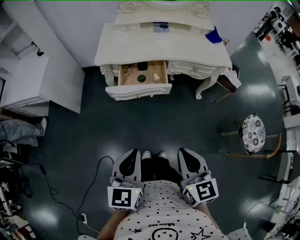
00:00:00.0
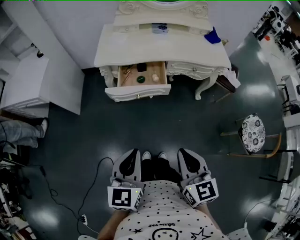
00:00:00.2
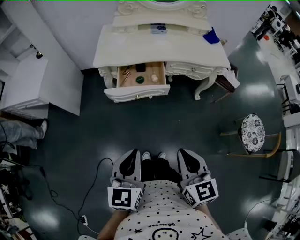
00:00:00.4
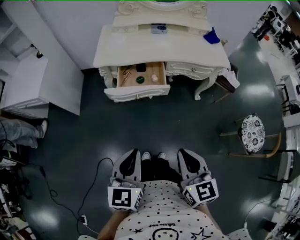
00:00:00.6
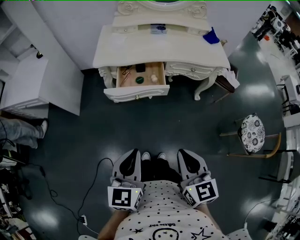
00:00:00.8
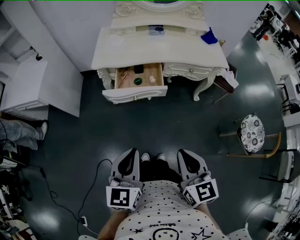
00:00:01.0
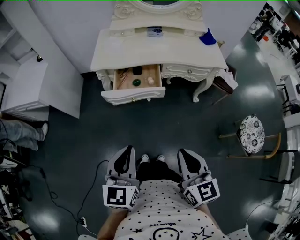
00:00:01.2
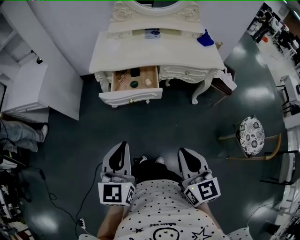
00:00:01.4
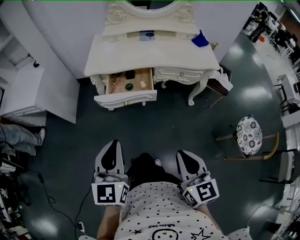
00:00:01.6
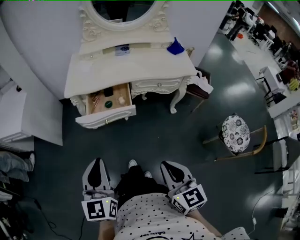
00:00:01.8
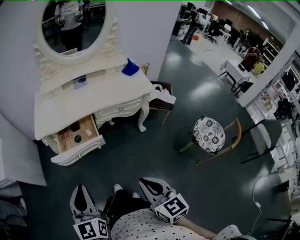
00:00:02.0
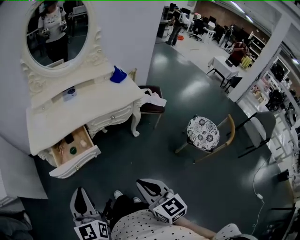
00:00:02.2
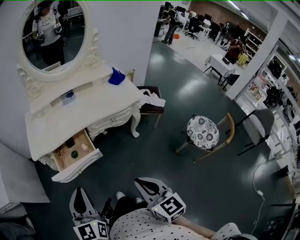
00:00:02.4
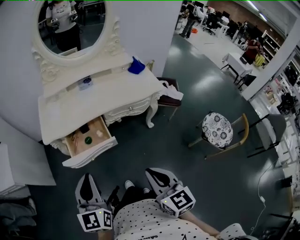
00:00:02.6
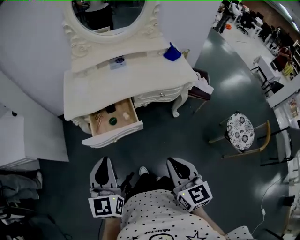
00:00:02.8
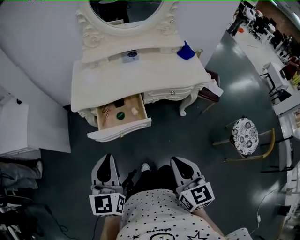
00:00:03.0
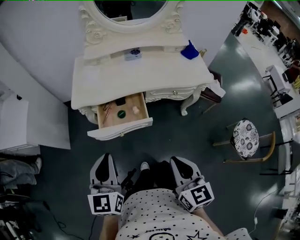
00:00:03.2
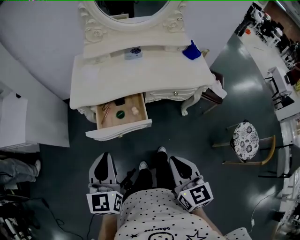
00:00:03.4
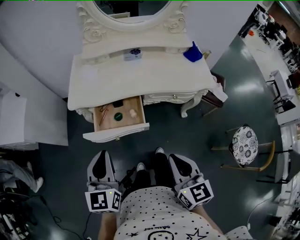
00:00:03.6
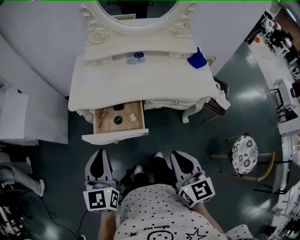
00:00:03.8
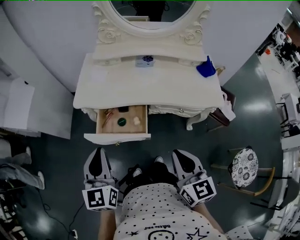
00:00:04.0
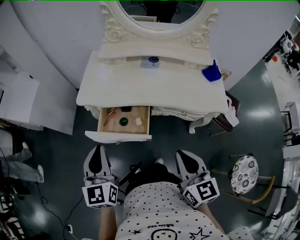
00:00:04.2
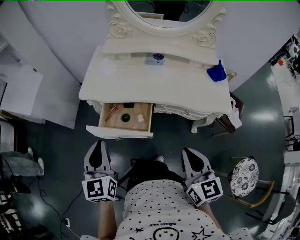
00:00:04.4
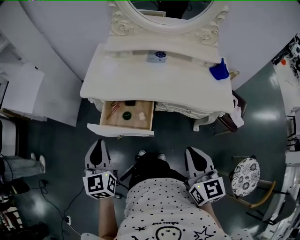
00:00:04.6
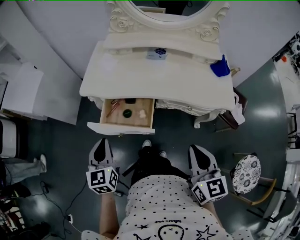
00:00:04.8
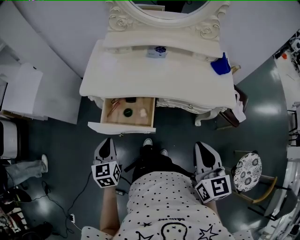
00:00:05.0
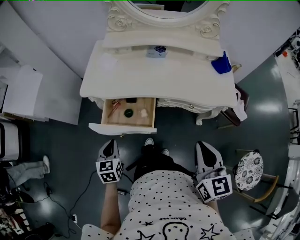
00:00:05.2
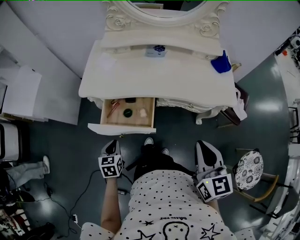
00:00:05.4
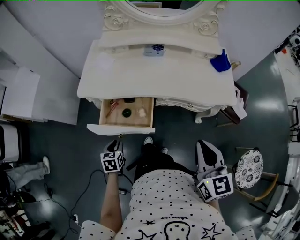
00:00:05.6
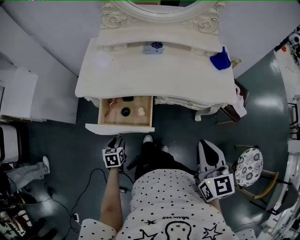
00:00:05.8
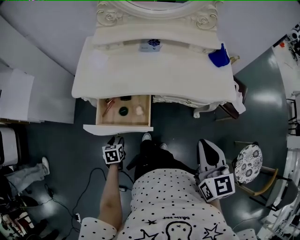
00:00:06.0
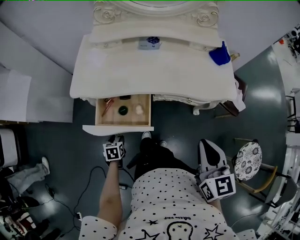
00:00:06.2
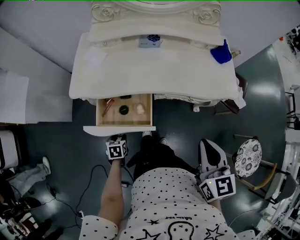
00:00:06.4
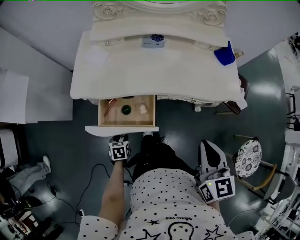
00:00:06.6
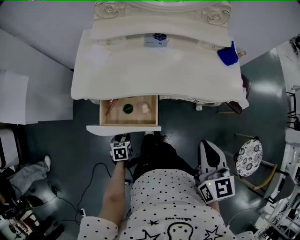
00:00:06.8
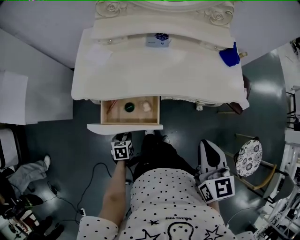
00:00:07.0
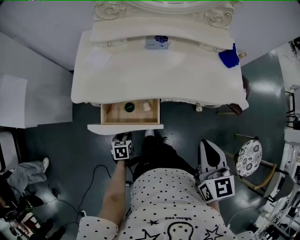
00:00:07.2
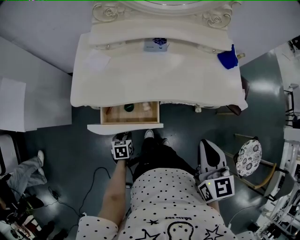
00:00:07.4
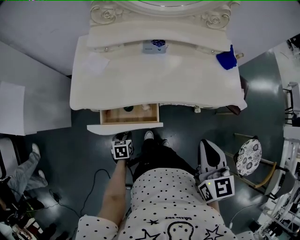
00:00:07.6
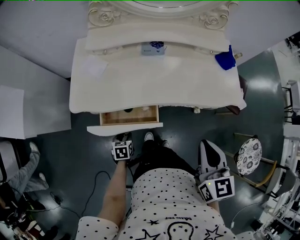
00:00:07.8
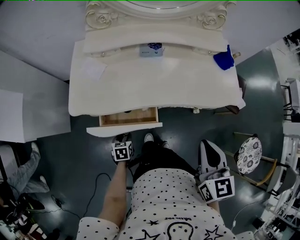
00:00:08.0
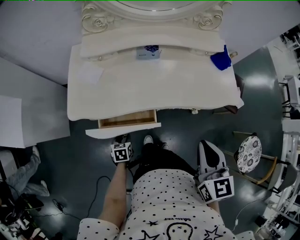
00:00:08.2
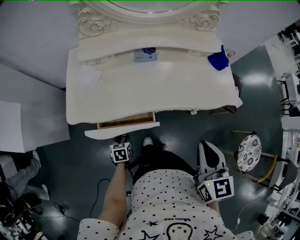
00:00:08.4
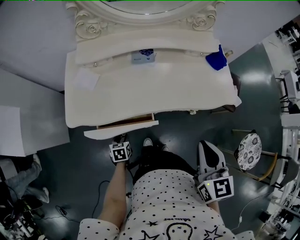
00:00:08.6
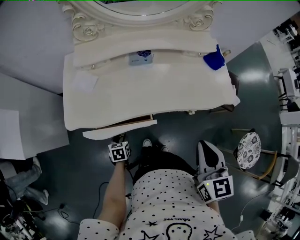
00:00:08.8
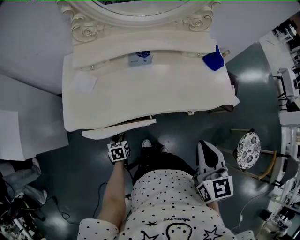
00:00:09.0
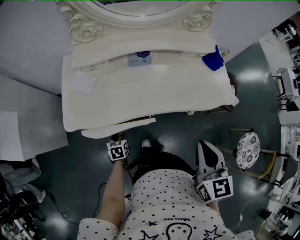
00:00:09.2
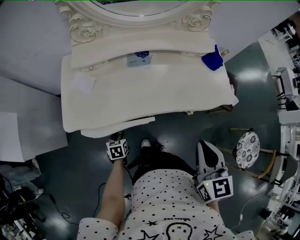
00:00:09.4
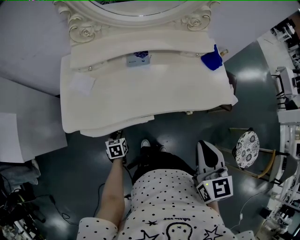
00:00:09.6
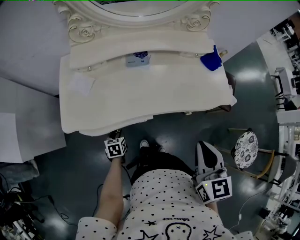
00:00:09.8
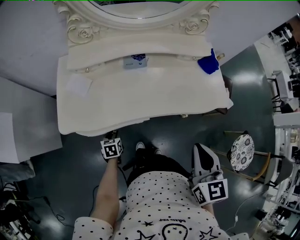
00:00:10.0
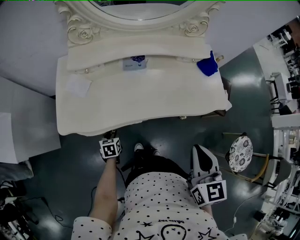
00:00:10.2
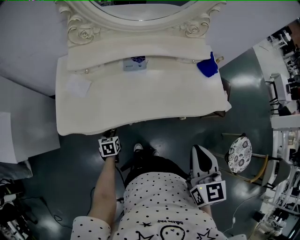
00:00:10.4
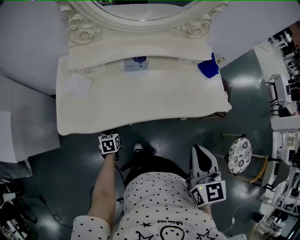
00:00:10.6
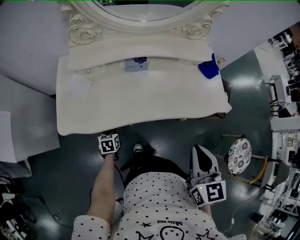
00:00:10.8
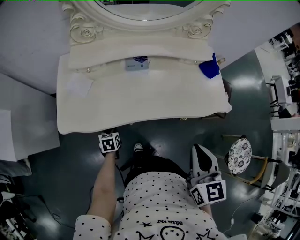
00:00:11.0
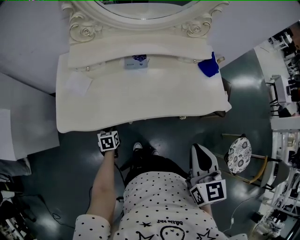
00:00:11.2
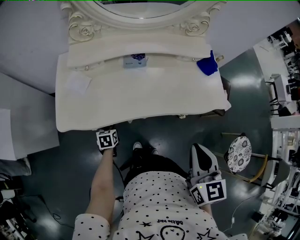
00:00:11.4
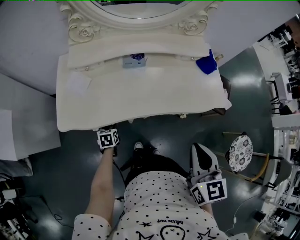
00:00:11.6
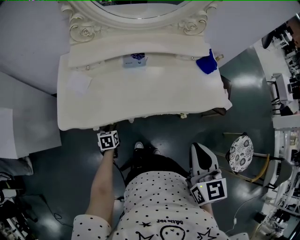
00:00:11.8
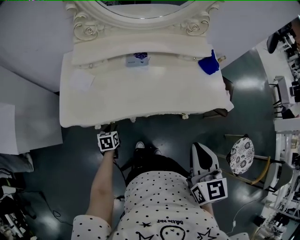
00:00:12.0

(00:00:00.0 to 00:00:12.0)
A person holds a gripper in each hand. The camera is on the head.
00:00:00.0 - 00:00:01.6: The right gripper moves to the right, about 5 cm. The left gripper ends up roughly 5 cm from where it was.
00:00:01.6 - 00:00:03.0: Both grippers travel together forward, some 15 cm.
00:00:03.0 - 00:00:04.4: The right gripper shifts approximately 20 cm forward and to the right; the left gripper heads forward, covering some 10 cm, and turns by roughly 20 degrees.
00:00:04.4 - 00:00:06.0: The right gripper goes some 5 cm to the right, while the left gripper moves downward, roughly 35 cm, tips its fingers downward by some 50 degrees, and opens its fingers.
00:00:06.0 - 00:00:07.6: The right gripper moves forward and to the left, about 10 cm. Meanwhile the left gripper shifts approximately 10 cm forward.
00:00:07.6 - 00:00:09.0: The left gripper moves forward, about 5 cm.
00:00:09.0 - 00:00:10.4: The grippers stay close to where they were, moving slightly.
00:00:10.4 - 00:00:12.0: The grippers stay close to where they were, moving slightly.

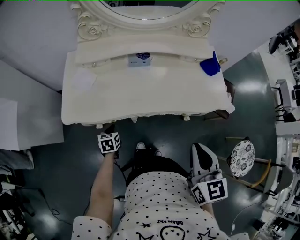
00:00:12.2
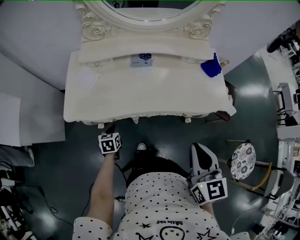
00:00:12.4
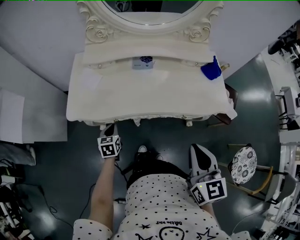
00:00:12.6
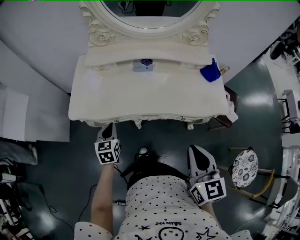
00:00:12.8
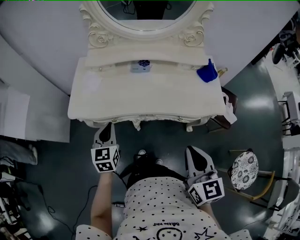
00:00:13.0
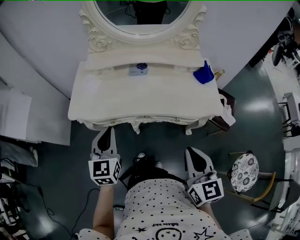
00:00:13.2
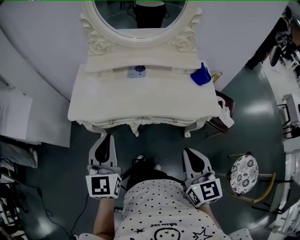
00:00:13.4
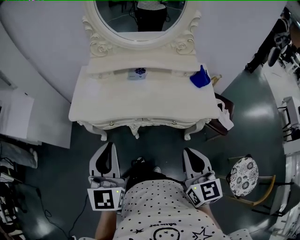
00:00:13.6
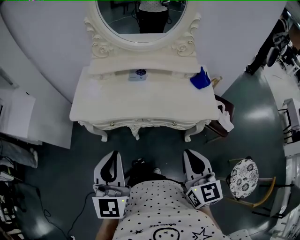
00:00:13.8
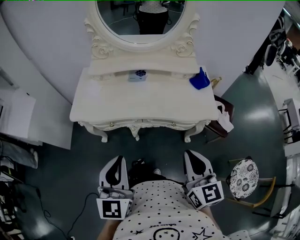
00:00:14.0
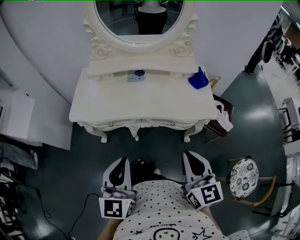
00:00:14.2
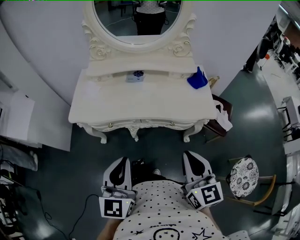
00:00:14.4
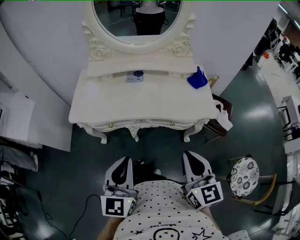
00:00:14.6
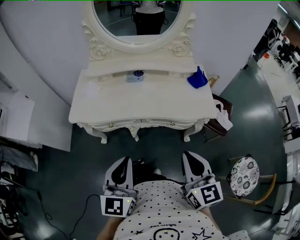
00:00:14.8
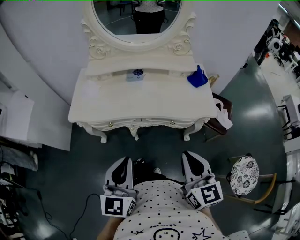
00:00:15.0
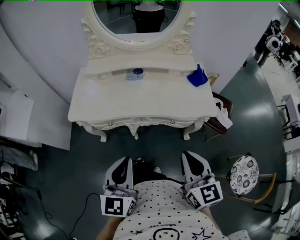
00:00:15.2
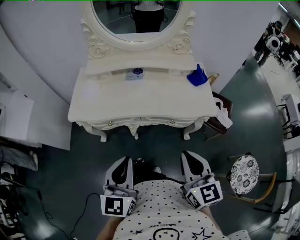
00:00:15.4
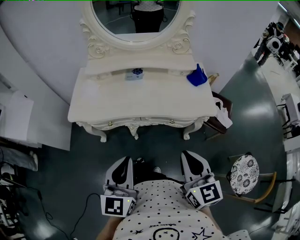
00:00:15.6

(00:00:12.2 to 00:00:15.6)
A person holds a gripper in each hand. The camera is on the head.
00:00:12.2 - 00:00:13.8: The right gripper travels backward and to the right by roughly 10 cm; the left gripper heads upward and backward, covering some 50 cm, and points its fingers about 50 degrees further upward.
00:00:13.8 - 00:00:15.6: The left gripper changes place by about 5 cm.

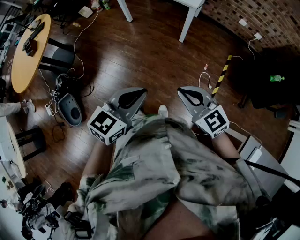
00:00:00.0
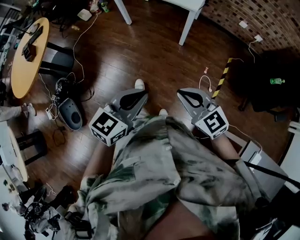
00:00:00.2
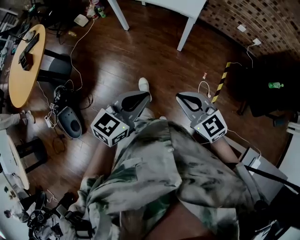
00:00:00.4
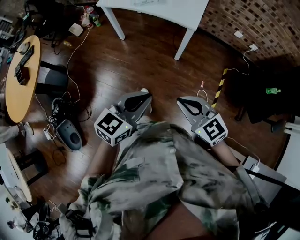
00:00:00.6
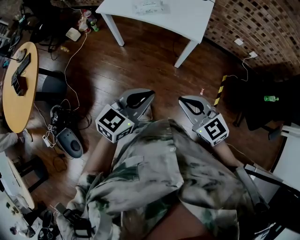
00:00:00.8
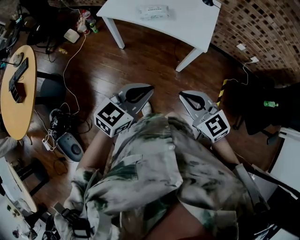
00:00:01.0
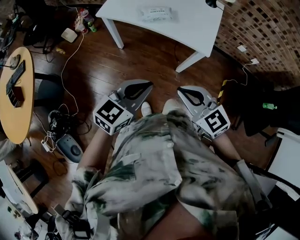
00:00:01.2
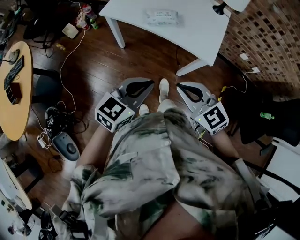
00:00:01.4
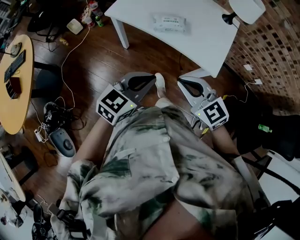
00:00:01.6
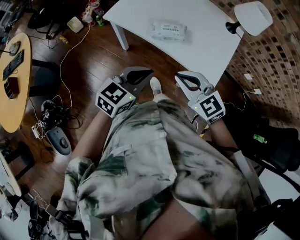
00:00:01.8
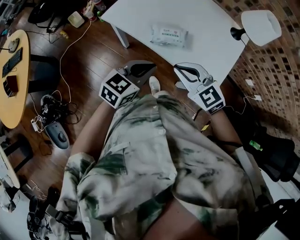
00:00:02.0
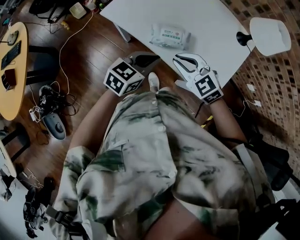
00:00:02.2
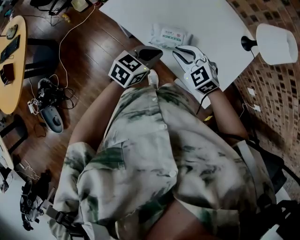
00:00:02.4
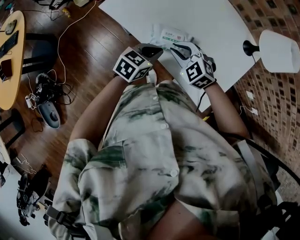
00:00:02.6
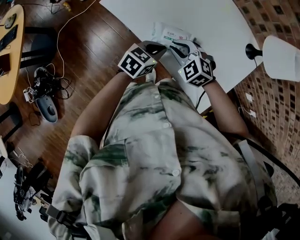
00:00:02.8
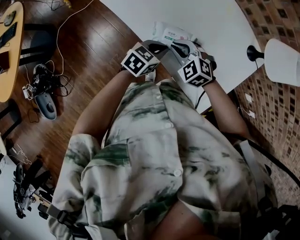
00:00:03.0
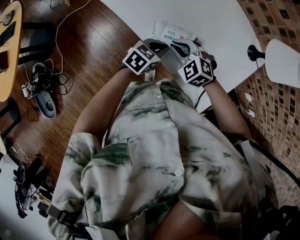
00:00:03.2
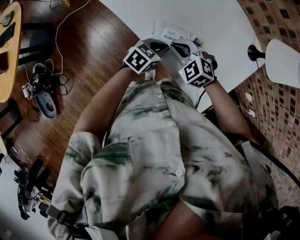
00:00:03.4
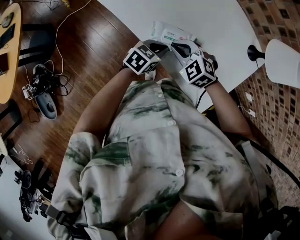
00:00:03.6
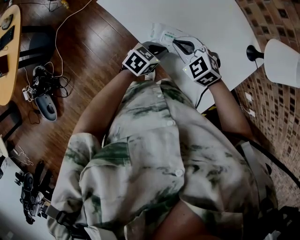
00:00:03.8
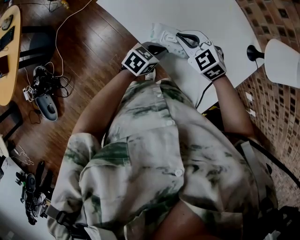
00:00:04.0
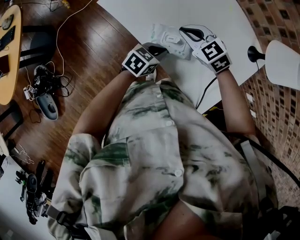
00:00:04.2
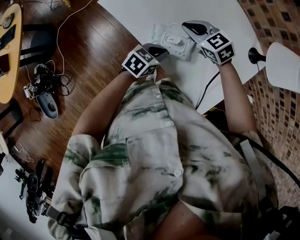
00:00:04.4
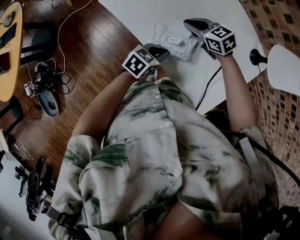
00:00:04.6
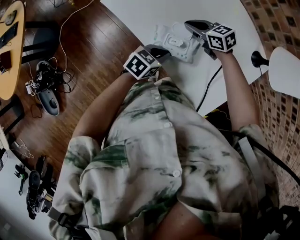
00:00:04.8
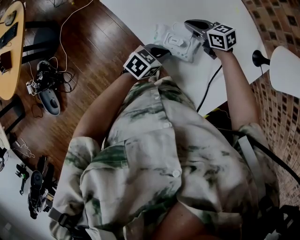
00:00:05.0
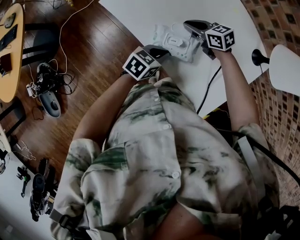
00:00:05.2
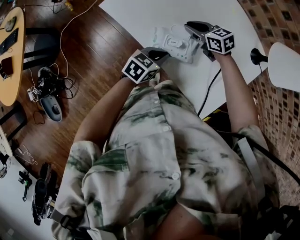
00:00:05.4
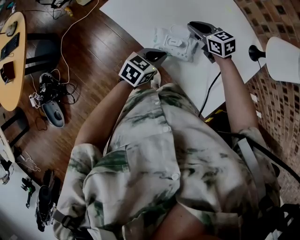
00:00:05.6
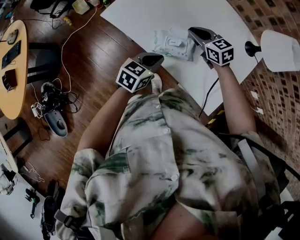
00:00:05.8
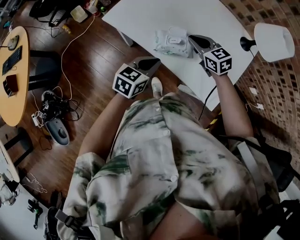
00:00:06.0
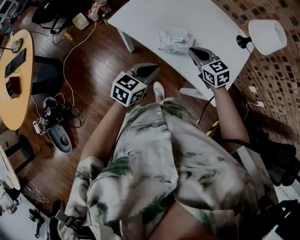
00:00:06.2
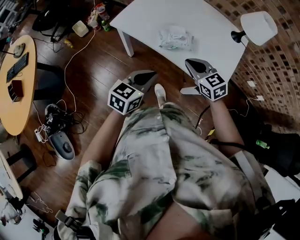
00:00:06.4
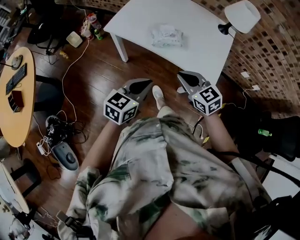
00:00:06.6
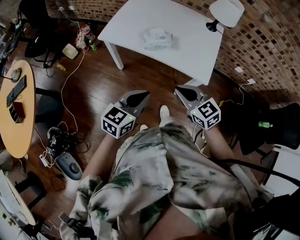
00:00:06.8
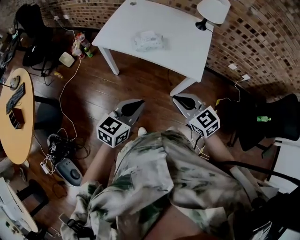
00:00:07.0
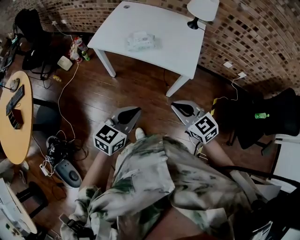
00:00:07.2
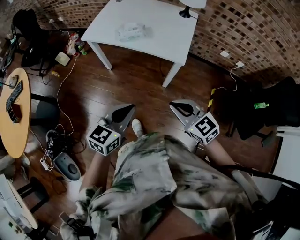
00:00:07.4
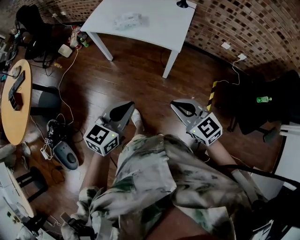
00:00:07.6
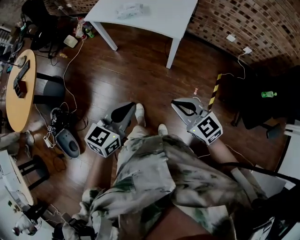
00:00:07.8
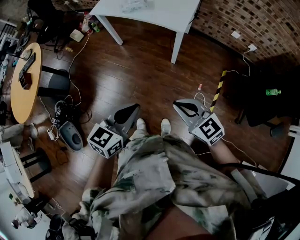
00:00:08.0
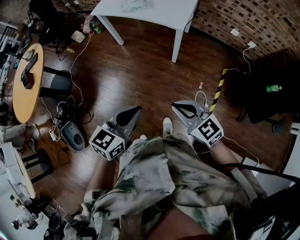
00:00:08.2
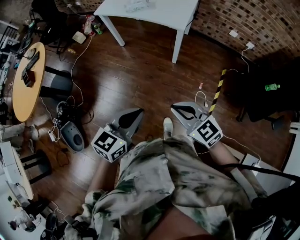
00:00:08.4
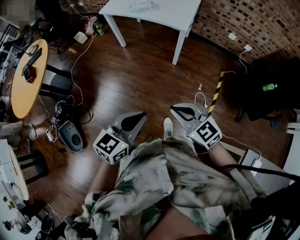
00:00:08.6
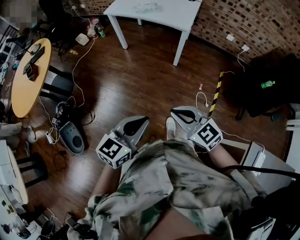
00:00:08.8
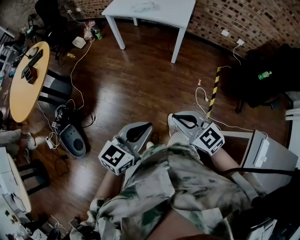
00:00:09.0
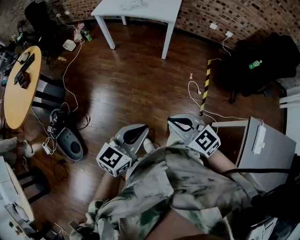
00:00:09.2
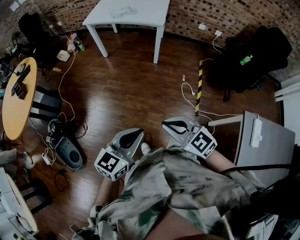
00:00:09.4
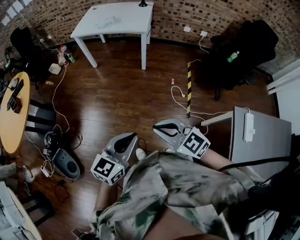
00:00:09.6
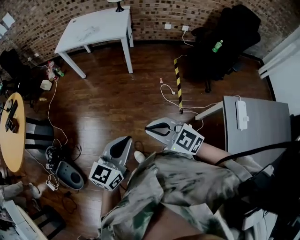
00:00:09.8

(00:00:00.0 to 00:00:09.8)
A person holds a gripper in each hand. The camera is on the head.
00:00:00.0 - 00:00:01.4: The pair of grippers is taken forward, approximately 50 cm.
00:00:01.4 - 00:00:02.8: The grippers both shift forward and downward by some 40 cm. The right gripper changes its angle by approximately 40 degrees. Meanwhile the left gripper rotates some 20 degrees.
00:00:02.8 - 00:00:04.2: The right gripper goes approximately 10 cm forward.
00:00:04.2 - 00:00:05.6: The right gripper shifts by approximately 10 cm, and changes its angle by approximately 30 degrees.
00:00:05.6 - 00:00:07.0: The left gripper shifts roughly 40 cm backward and upward, and swivels roughly 20 degrees. The right gripper moves backward, roughly 50 cm, and turns by roughly 30 degrees.
00:00:07.0 - 00:00:08.4: The grippers both shift backward by some 40 cm.
00:00:08.4 - 00:00:09.8: Both grippers move backward, some 25 cm.
